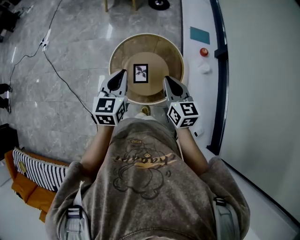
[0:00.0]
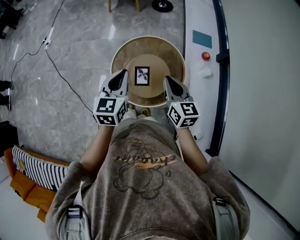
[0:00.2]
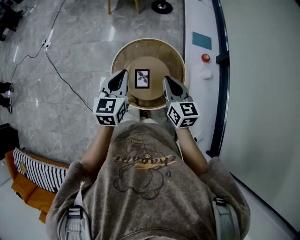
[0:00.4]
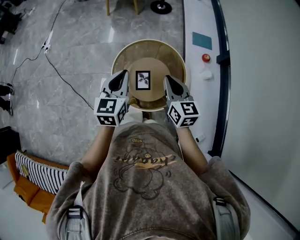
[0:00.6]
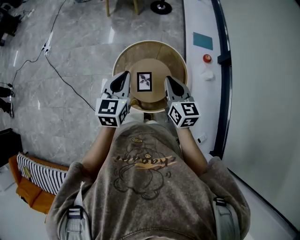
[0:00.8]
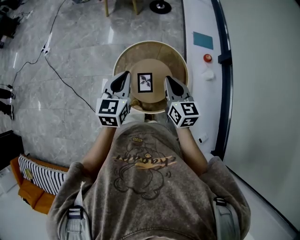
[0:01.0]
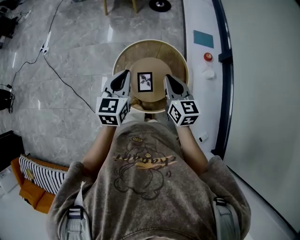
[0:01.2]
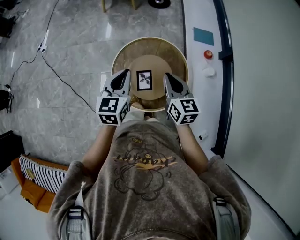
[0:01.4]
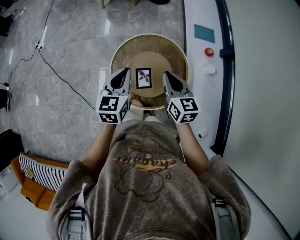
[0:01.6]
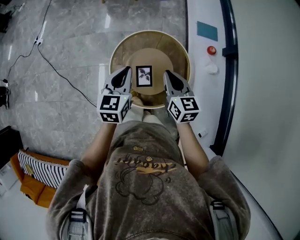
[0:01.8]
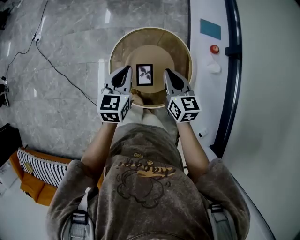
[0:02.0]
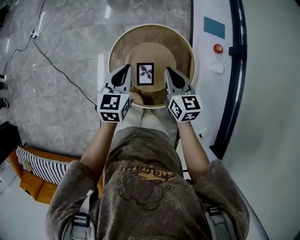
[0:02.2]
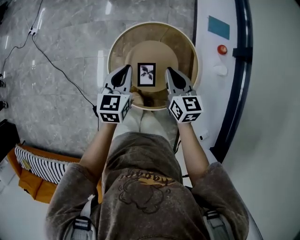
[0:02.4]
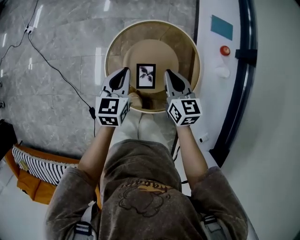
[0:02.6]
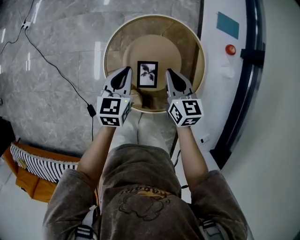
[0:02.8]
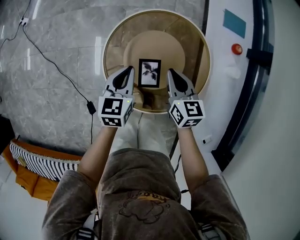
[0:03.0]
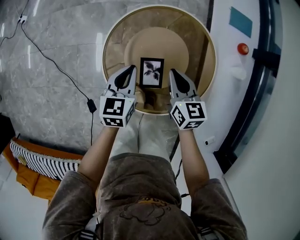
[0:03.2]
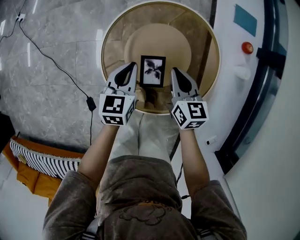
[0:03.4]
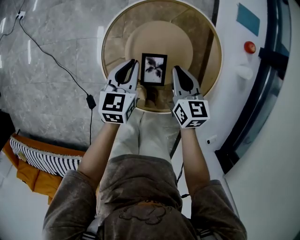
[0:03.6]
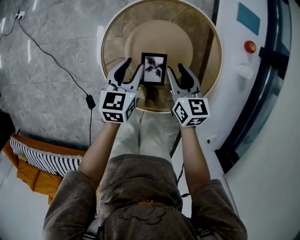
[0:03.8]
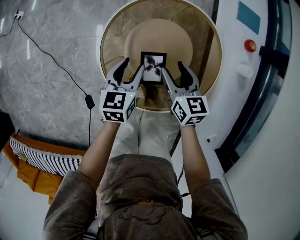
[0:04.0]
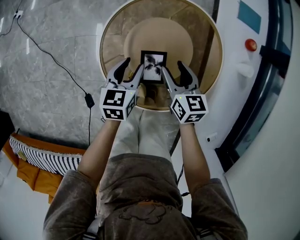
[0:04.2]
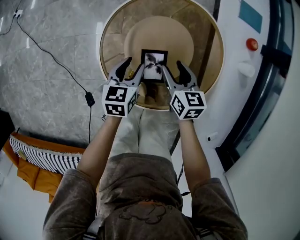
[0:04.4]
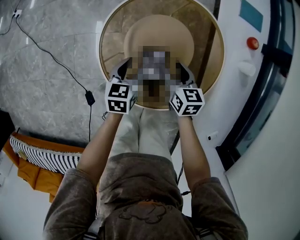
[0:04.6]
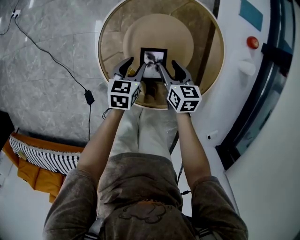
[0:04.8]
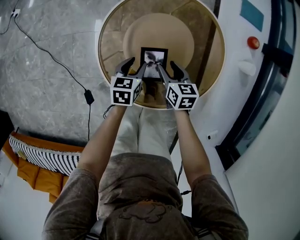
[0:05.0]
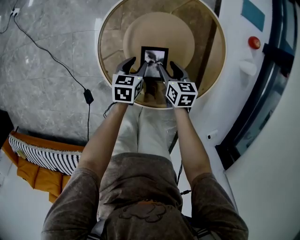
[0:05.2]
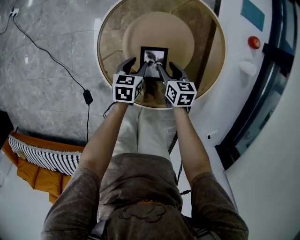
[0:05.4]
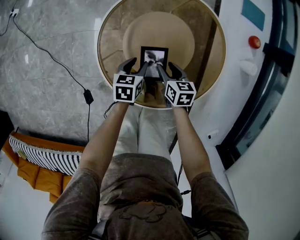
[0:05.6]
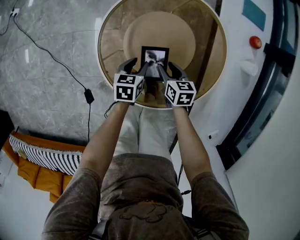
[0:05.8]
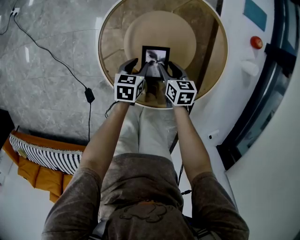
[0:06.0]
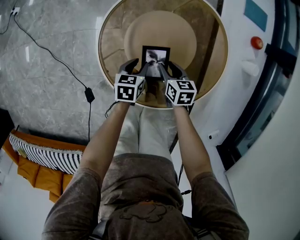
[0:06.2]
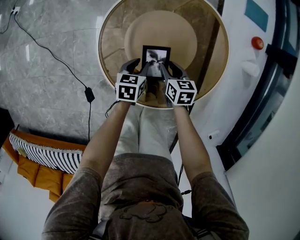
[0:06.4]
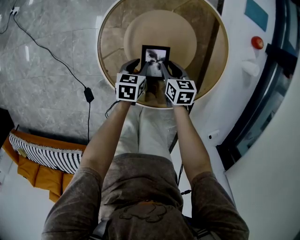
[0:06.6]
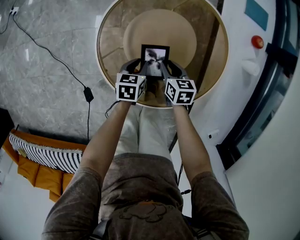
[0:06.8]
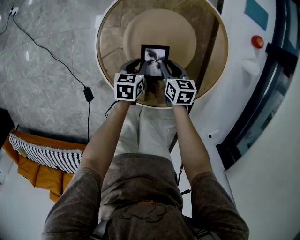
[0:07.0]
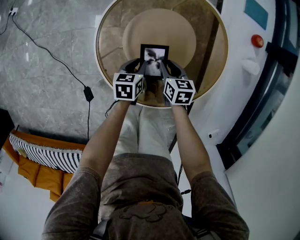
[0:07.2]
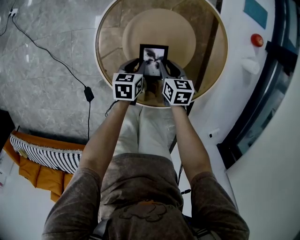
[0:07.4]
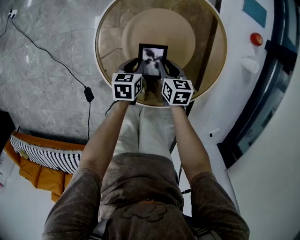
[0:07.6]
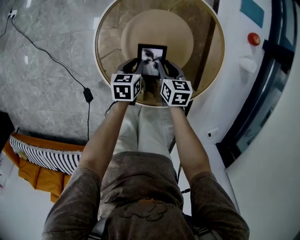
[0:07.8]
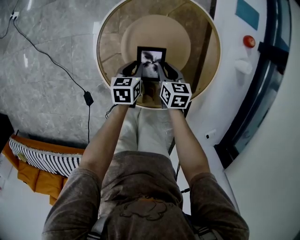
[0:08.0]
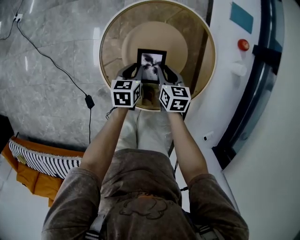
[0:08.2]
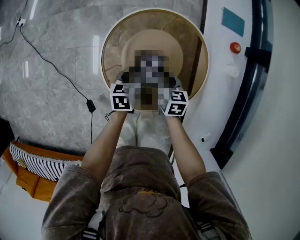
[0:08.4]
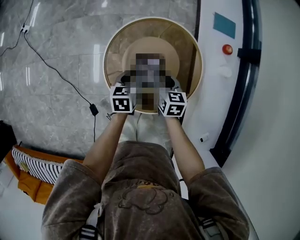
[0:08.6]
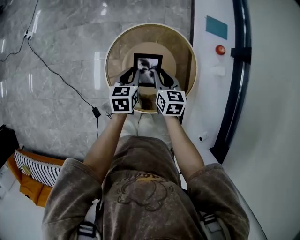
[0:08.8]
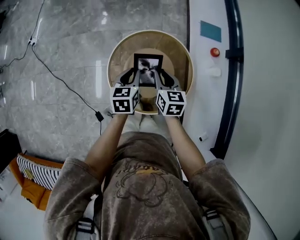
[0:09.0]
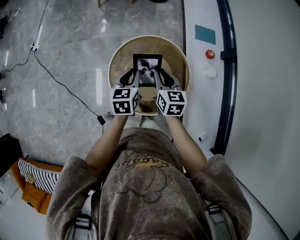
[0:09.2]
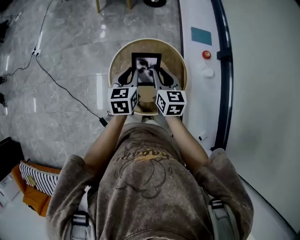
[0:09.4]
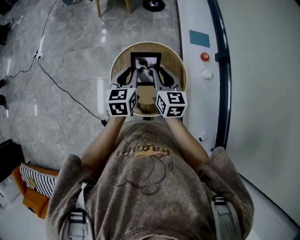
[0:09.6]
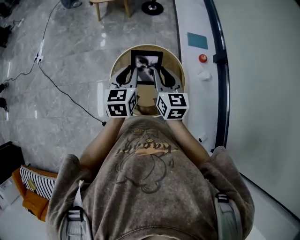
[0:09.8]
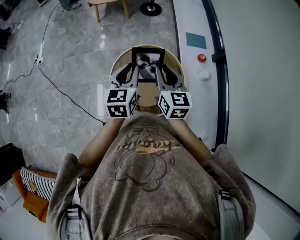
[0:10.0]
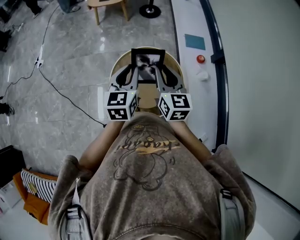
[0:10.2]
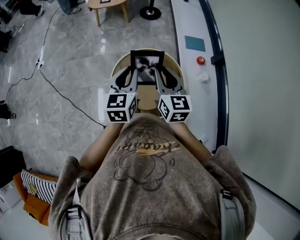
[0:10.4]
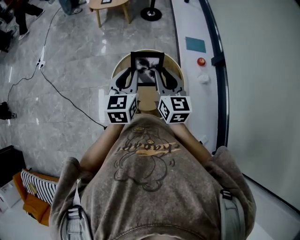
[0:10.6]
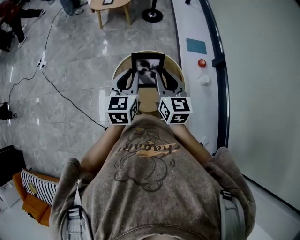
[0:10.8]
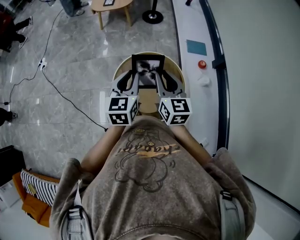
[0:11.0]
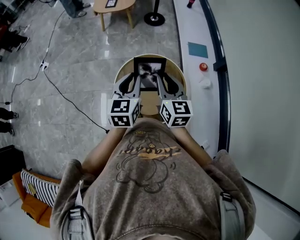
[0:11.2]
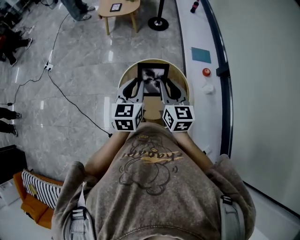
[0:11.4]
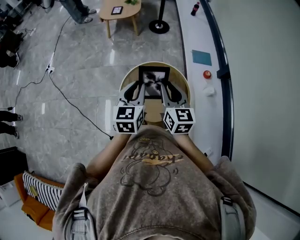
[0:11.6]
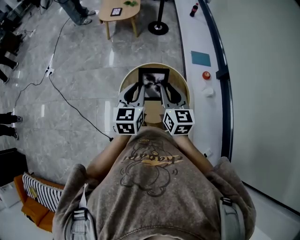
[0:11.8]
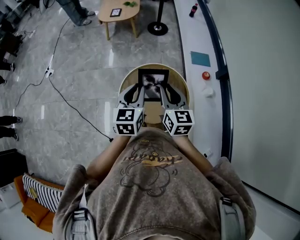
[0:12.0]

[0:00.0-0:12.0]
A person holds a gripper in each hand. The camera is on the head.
0:00.0 to 0:01.6: Both grippers move forward, some 10 cm.
0:01.6 to 0:03.0: The two grippers go approximately 25 cm downward.
0:03.0 to 0:04.4: The grippers both shift downward by some 10 cm. The right gripper opens. Meanwhile the left gripper opens its fingers.
0:04.4 to 0:06.0: The grippers both shift downward by about 10 cm.
0:06.0 to 0:07.6: The left gripper closes.
0:07.6 to 0:09.0: Both grippers travel together upward, some 30 cm. The right gripper rotates about 20 degrees. The left gripper swivels some 20 degrees.
0:09.0 to 0:10.4: Both grippers travel together upward, some 20 cm. The right gripper turns by approximately 20 degrees. Meanwhile the left gripper changes its angle by some 20 degrees.
0:10.4 to 0:12.0: The grippers make only small movements.

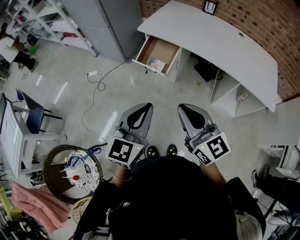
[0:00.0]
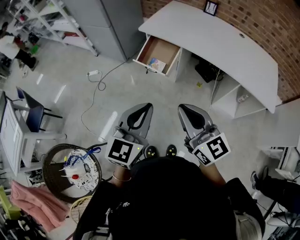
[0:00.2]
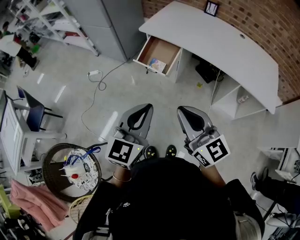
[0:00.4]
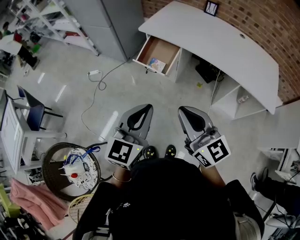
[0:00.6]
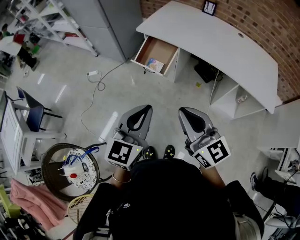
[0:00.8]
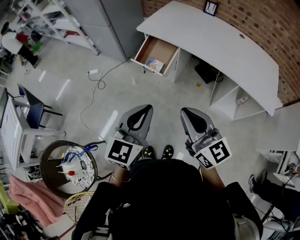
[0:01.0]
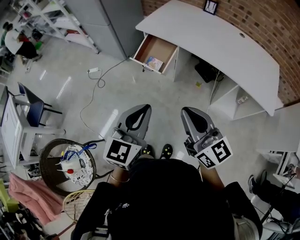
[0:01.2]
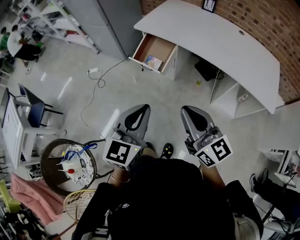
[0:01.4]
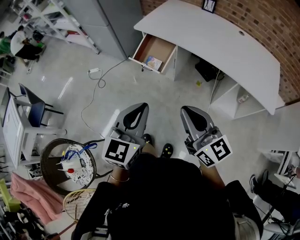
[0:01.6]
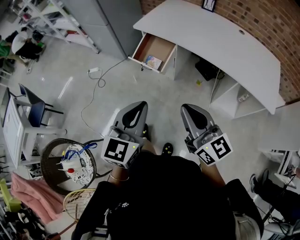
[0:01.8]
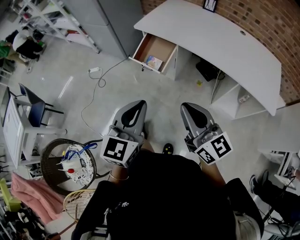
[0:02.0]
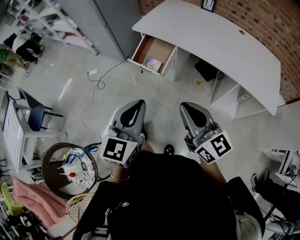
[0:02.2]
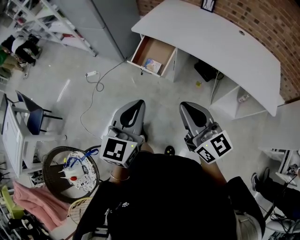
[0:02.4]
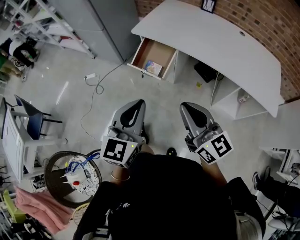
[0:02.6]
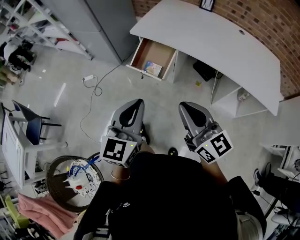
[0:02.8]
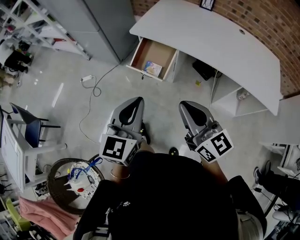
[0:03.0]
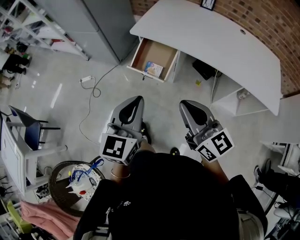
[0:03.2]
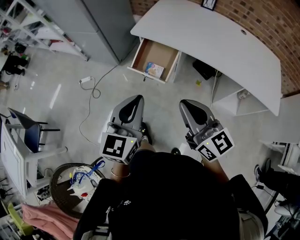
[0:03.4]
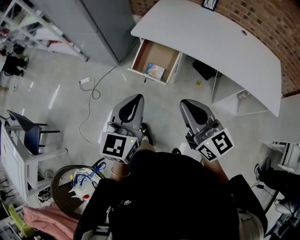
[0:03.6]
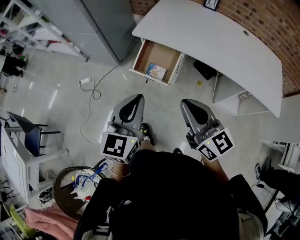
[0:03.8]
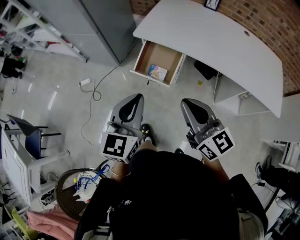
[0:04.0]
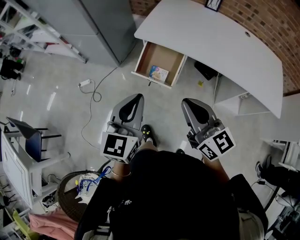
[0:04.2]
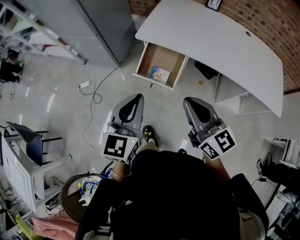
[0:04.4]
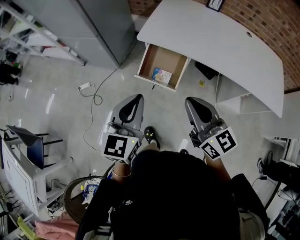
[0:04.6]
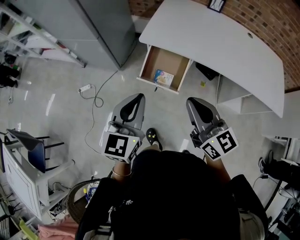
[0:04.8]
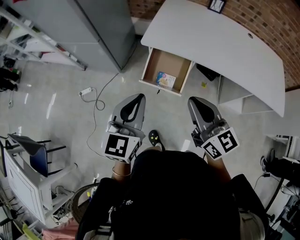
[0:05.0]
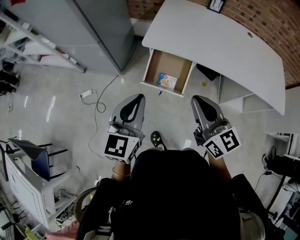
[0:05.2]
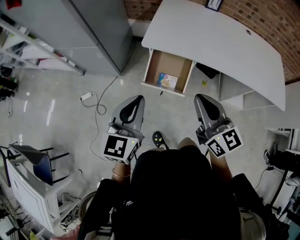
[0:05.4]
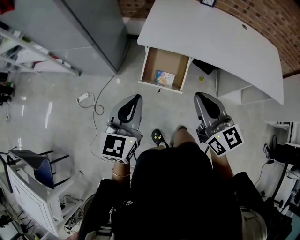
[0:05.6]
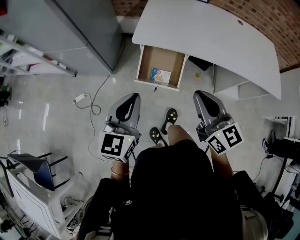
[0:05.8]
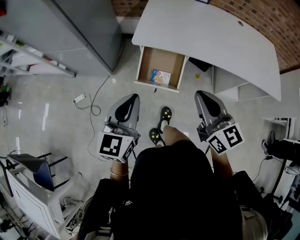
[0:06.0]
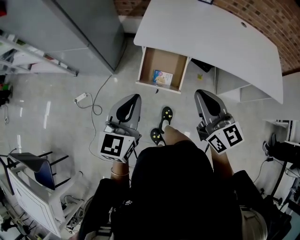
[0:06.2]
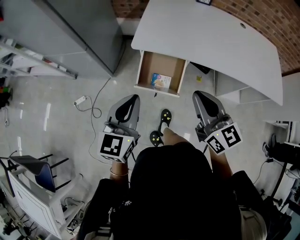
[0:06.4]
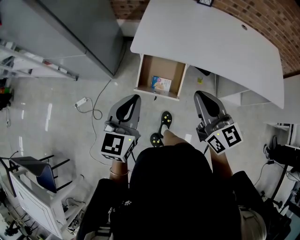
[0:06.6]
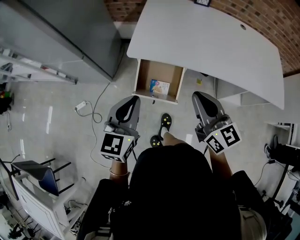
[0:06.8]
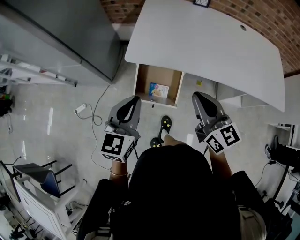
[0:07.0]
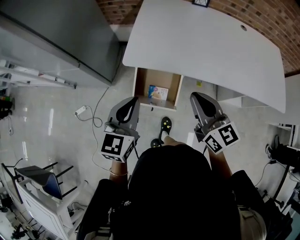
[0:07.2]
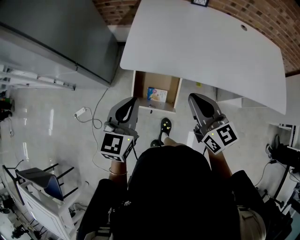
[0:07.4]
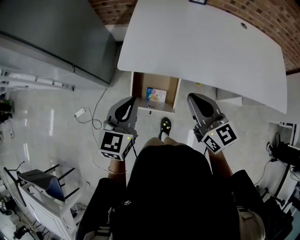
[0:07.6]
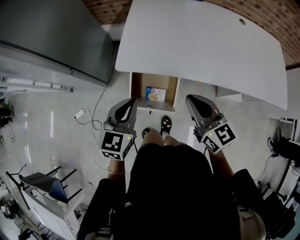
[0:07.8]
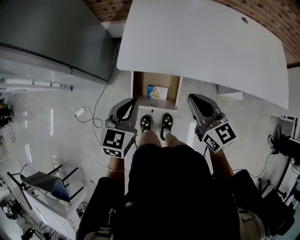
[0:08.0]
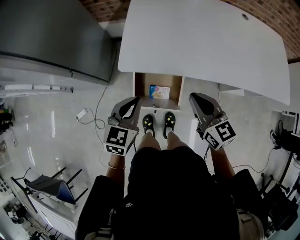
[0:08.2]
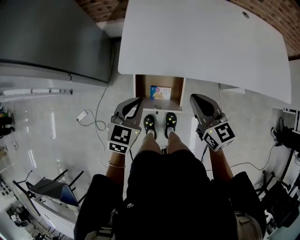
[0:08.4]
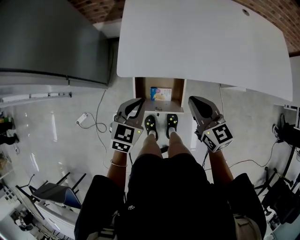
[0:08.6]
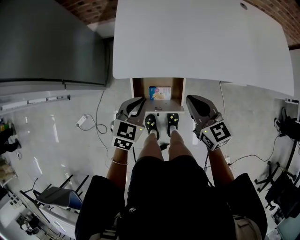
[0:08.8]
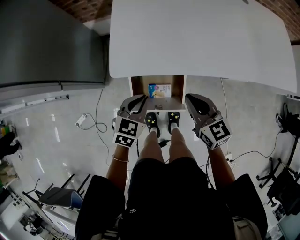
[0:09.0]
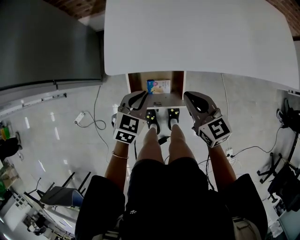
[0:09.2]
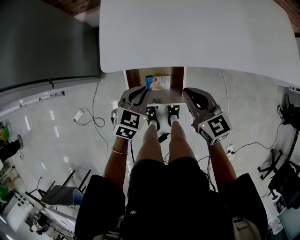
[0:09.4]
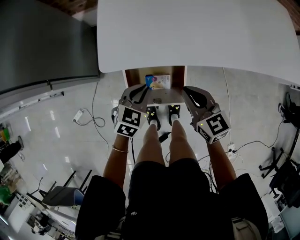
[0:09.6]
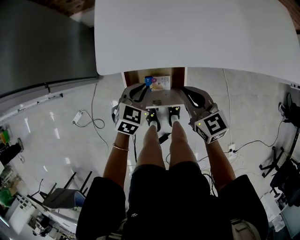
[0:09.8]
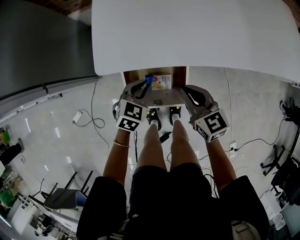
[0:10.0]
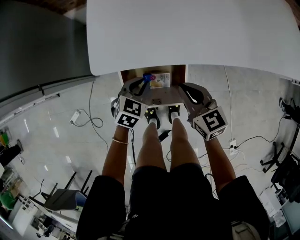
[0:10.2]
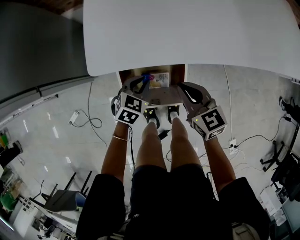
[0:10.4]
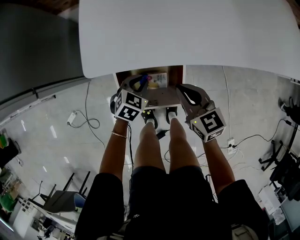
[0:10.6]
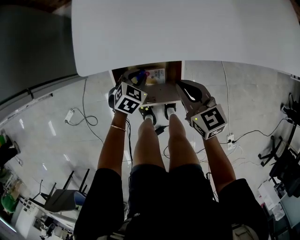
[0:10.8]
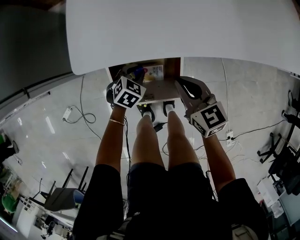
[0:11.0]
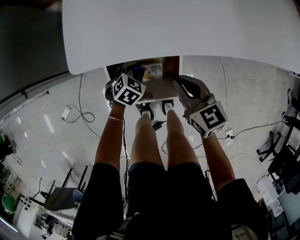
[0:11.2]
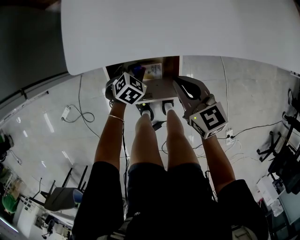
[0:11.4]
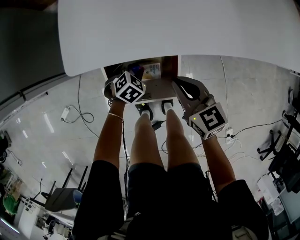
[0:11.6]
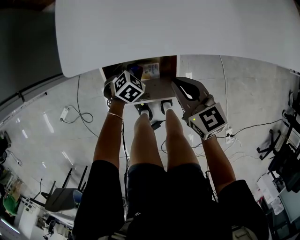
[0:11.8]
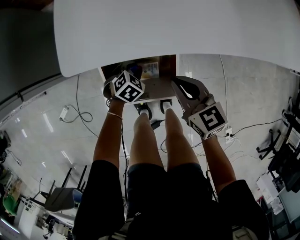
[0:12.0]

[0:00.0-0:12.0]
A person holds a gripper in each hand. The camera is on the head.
0:00.0 to 0:01.6: Both grippers move to the right, some 5 cm.
0:01.6 to 0:03.0: The two grippers go approximately 15 cm forward and to the left.
0:03.0 to 0:04.4: The grippers both shift forward and to the left by approximately 15 cm.
0:04.4 to 0:06.0: The left gripper moves to the left and forward, roughly 10 cm, while the right gripper is displaced forward by some 5 cm.
0:06.0 to 0:07.6: Both grippers travel together forward, some 15 cm.
0:07.6 to 0:09.0: Both grippers move downward, roughly 15 cm. The left gripper turns by approximately 30 degrees.
0:09.0 to 0:10.4: Both grippers travel together downward, approximately 15 cm.
0:10.4 to 0:12.0: The left gripper moves downward, approximately 10 cm, and changes its angle by approximately 20 degrees.
